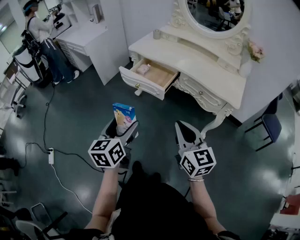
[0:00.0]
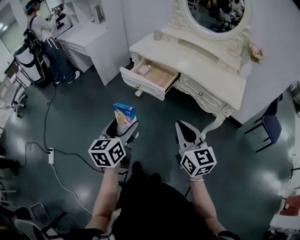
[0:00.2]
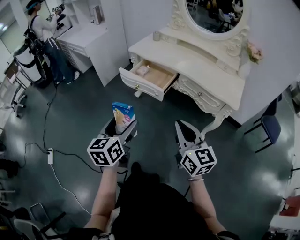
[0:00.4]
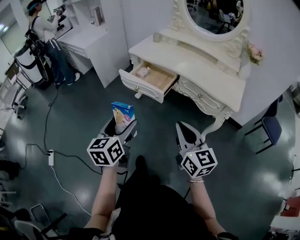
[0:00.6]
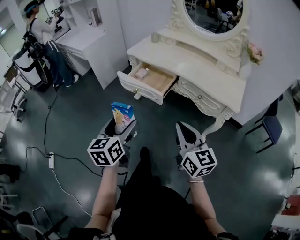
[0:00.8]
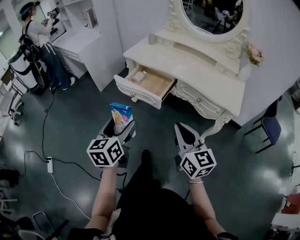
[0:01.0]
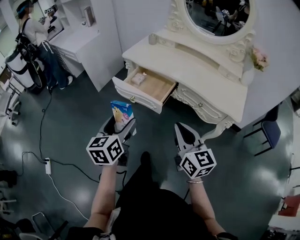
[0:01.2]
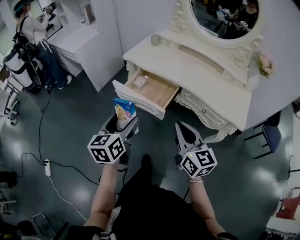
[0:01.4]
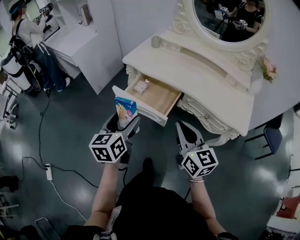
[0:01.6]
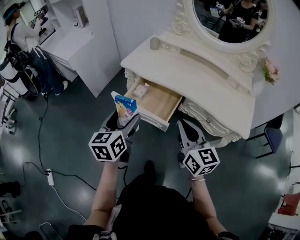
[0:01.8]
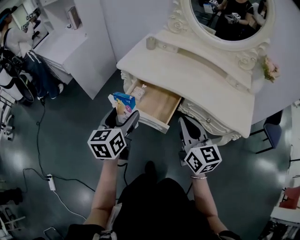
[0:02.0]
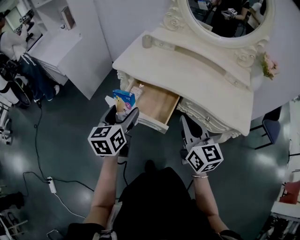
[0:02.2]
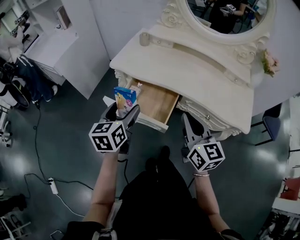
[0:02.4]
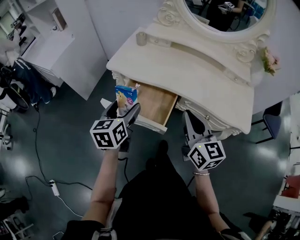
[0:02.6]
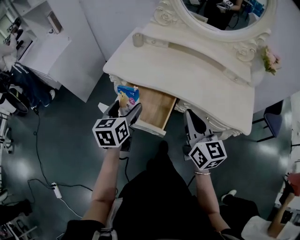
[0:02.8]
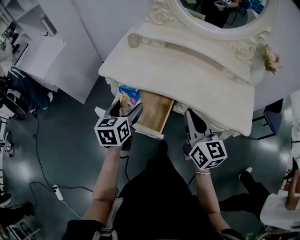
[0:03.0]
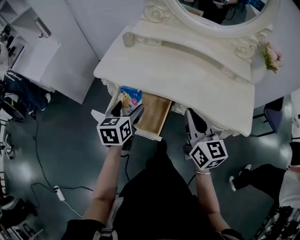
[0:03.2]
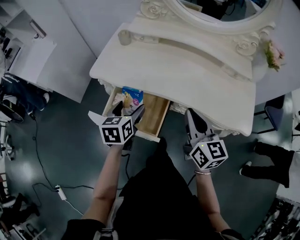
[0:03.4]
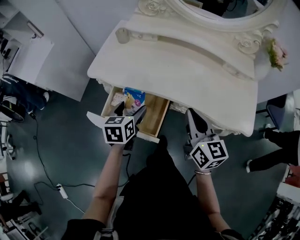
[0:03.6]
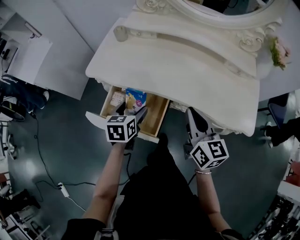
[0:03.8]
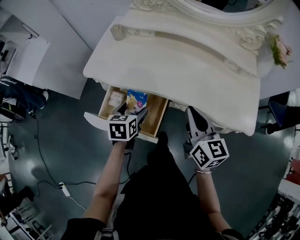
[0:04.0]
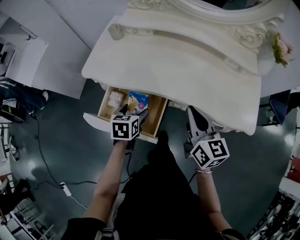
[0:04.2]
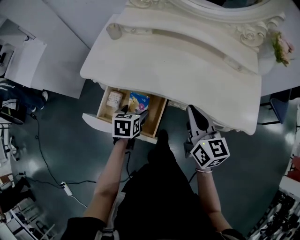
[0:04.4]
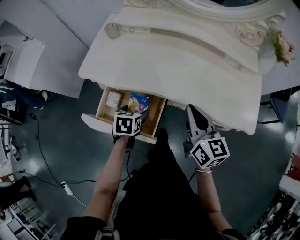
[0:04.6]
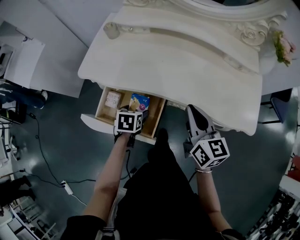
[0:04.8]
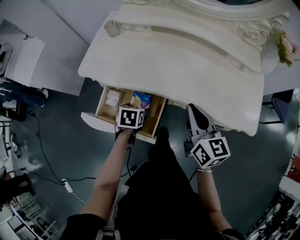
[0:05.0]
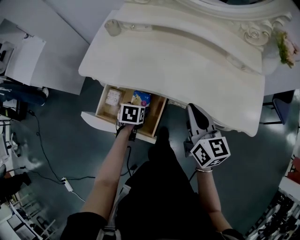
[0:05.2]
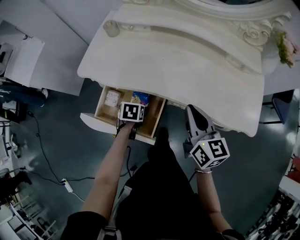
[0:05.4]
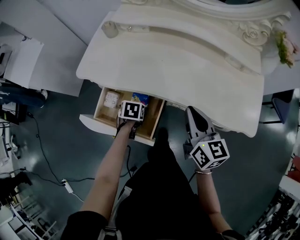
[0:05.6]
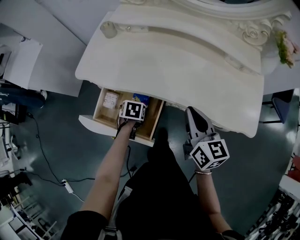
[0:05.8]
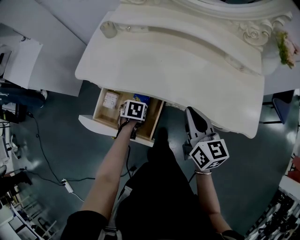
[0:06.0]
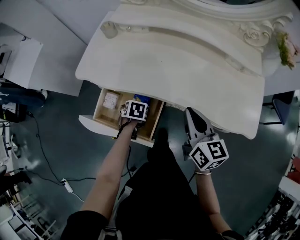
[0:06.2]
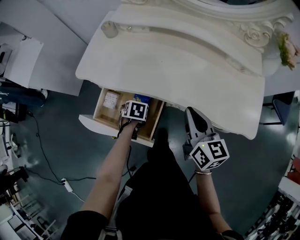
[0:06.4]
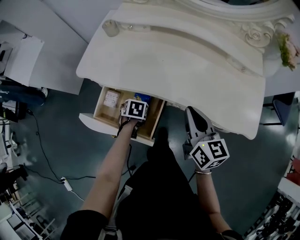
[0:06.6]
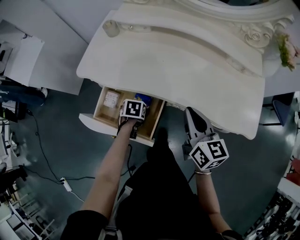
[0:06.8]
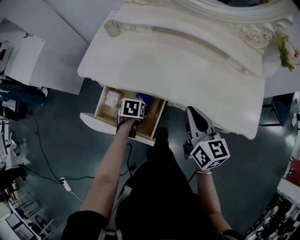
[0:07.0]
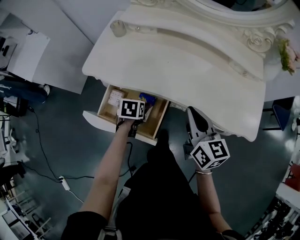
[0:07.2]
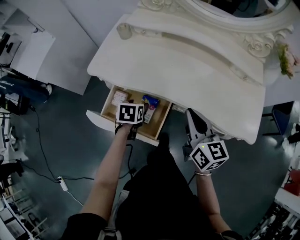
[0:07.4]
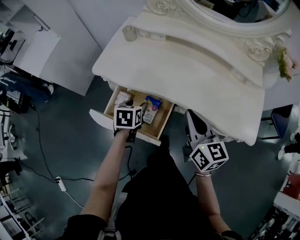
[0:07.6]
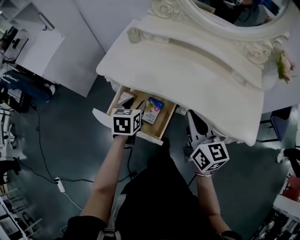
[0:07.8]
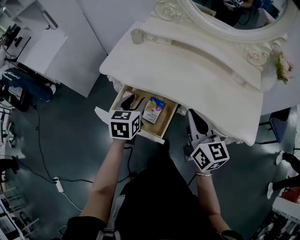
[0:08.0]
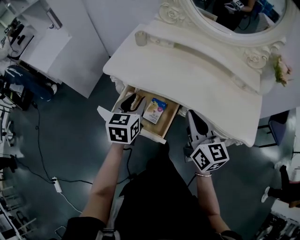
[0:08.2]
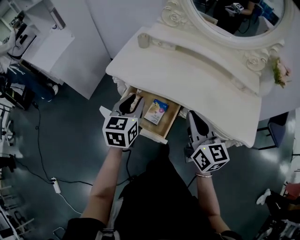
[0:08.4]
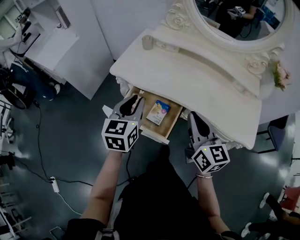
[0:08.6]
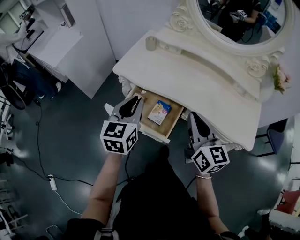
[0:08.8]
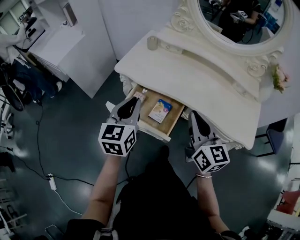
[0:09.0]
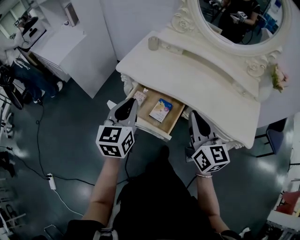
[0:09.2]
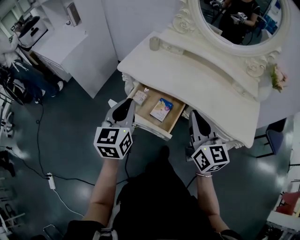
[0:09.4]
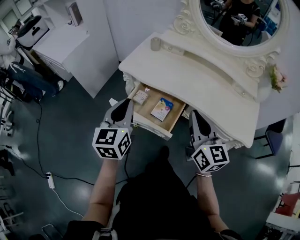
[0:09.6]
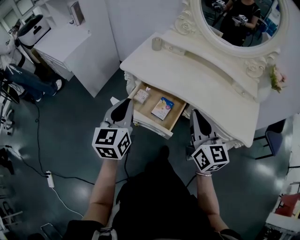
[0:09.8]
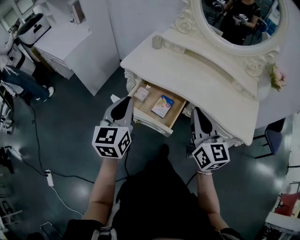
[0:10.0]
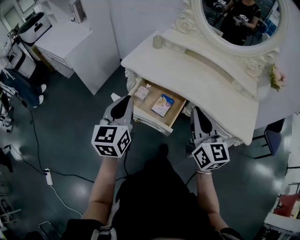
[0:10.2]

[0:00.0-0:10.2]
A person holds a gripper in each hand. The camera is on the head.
0:00.0 to 0:01.4: Both grippers travel together forward, approximately 15 cm.
0:01.4 to 0:03.0: The grippers both shift forward by approximately 25 cm.
0:03.0 to 0:04.4: The left gripper travels downward and to the right by roughly 15 cm, and changes its angle by approximately 30 degrees, while the right gripper is displaced forward and downward by roughly 10 cm.
0:04.4 to 0:05.8: The left gripper heads downward, covering about 10 cm, and swivels some 20 degrees.
0:05.8 to 0:07.2: The left gripper goes about 5 cm upward.
0:07.2 to 0:08.8: The left gripper goes roughly 25 cm upward, tilts its fingers approximately 50 degrees upward, and closes its fingers. Meanwhile the right gripper heads upward, to the left and backward, covering roughly 15 cm.
0:08.8 to 0:10.2: The left gripper moves backward and to the left, approximately 10 cm; the right gripper travels backward by some 5 cm.

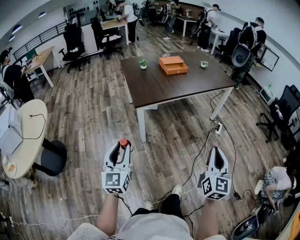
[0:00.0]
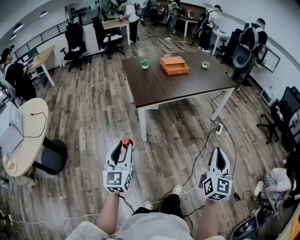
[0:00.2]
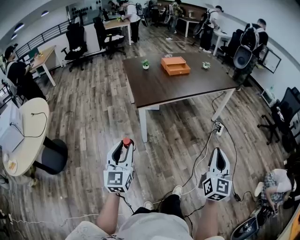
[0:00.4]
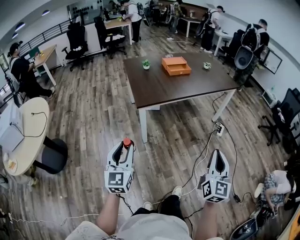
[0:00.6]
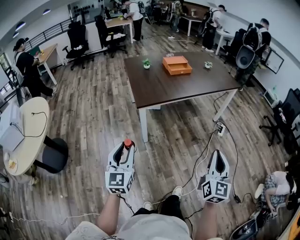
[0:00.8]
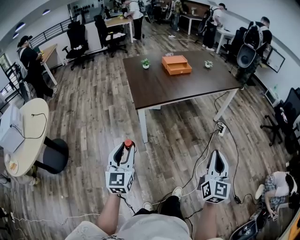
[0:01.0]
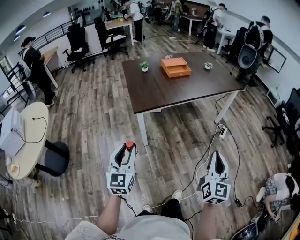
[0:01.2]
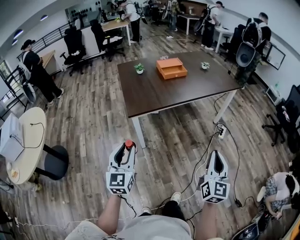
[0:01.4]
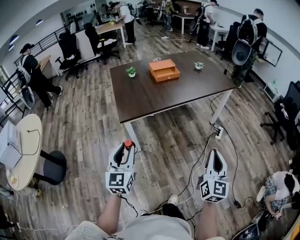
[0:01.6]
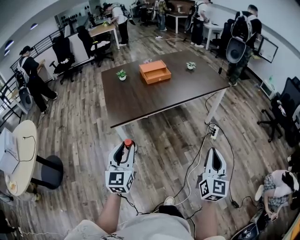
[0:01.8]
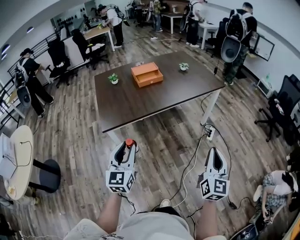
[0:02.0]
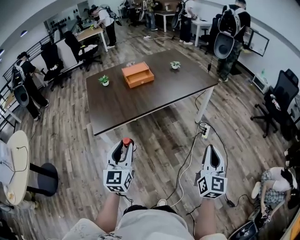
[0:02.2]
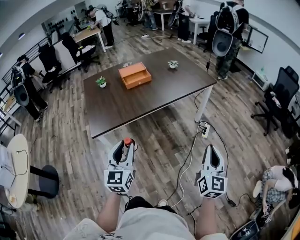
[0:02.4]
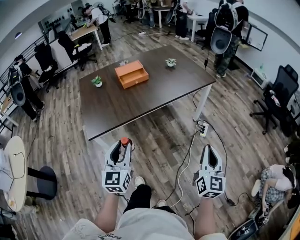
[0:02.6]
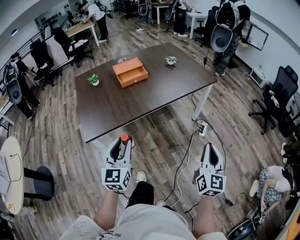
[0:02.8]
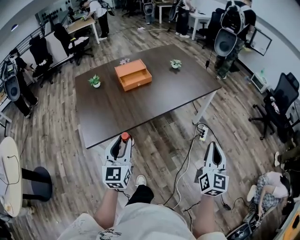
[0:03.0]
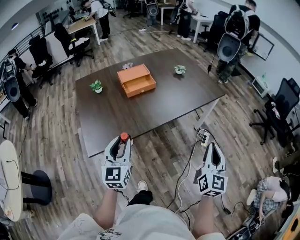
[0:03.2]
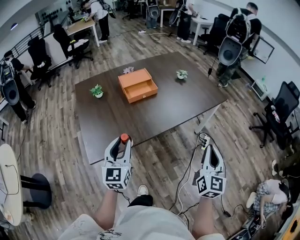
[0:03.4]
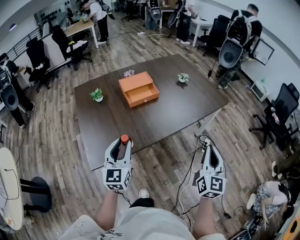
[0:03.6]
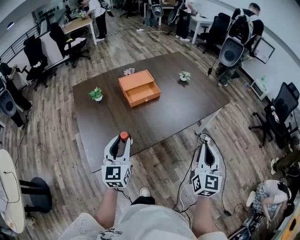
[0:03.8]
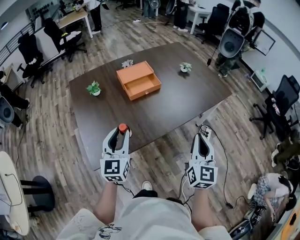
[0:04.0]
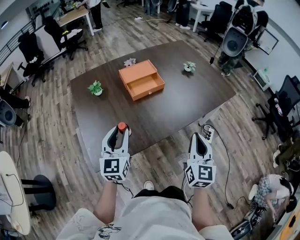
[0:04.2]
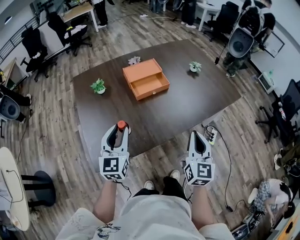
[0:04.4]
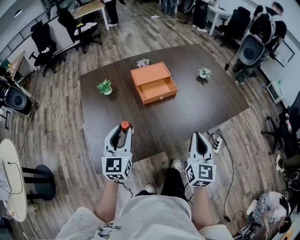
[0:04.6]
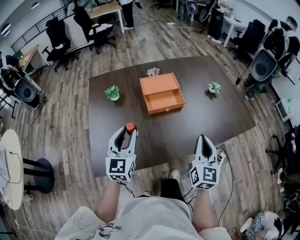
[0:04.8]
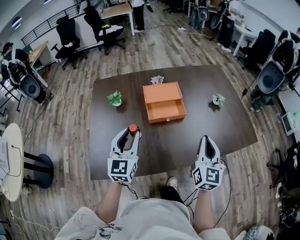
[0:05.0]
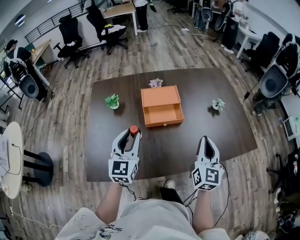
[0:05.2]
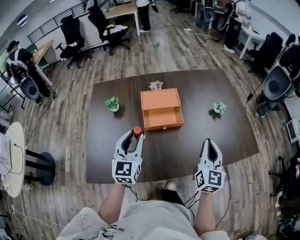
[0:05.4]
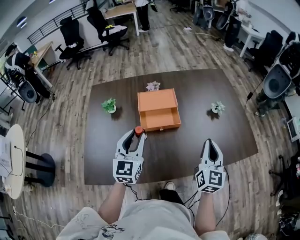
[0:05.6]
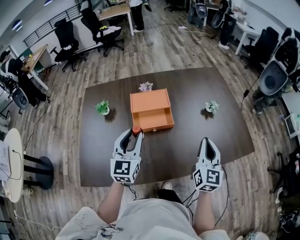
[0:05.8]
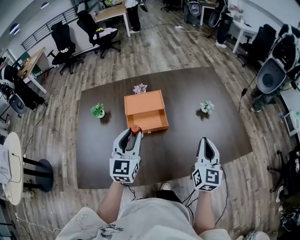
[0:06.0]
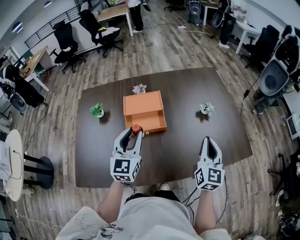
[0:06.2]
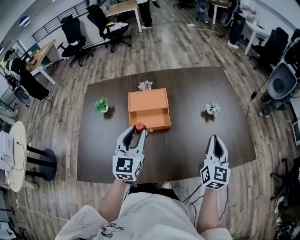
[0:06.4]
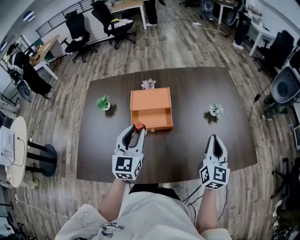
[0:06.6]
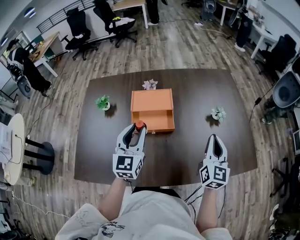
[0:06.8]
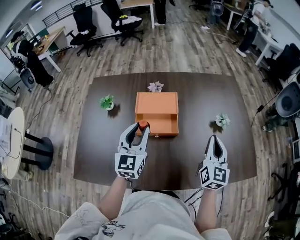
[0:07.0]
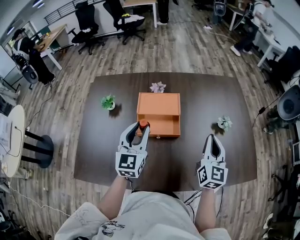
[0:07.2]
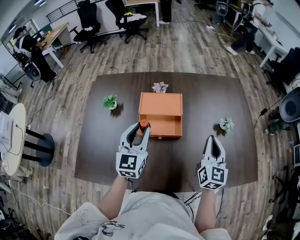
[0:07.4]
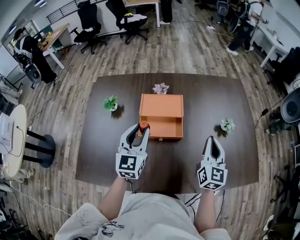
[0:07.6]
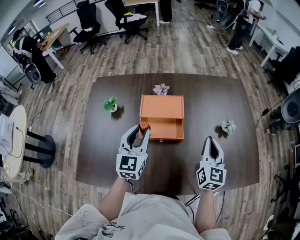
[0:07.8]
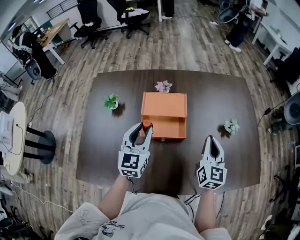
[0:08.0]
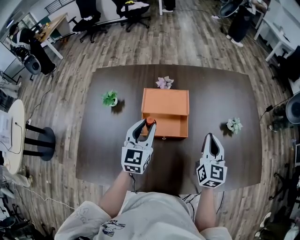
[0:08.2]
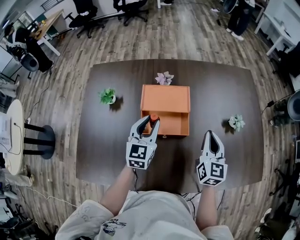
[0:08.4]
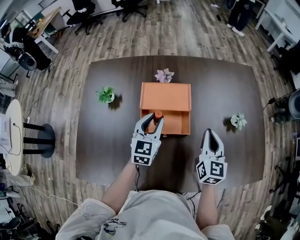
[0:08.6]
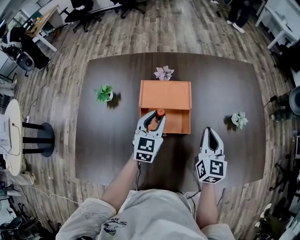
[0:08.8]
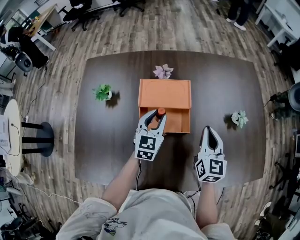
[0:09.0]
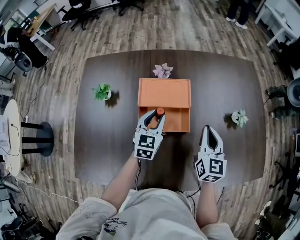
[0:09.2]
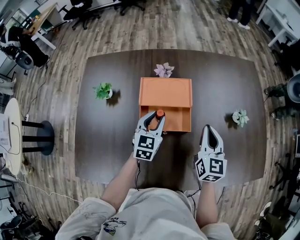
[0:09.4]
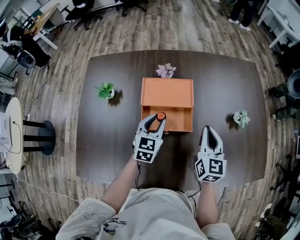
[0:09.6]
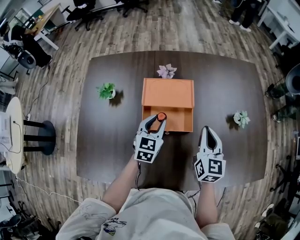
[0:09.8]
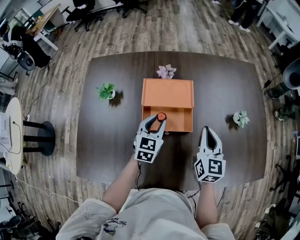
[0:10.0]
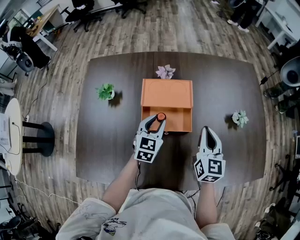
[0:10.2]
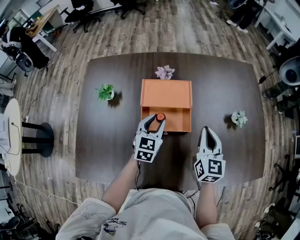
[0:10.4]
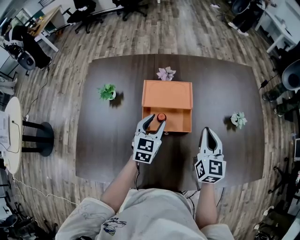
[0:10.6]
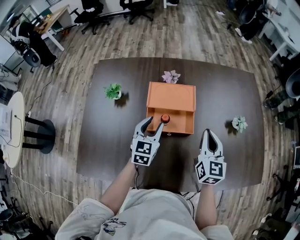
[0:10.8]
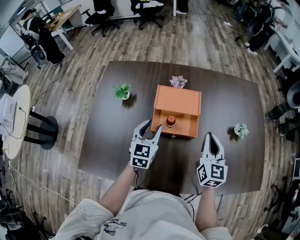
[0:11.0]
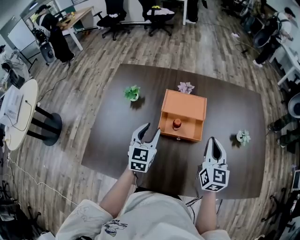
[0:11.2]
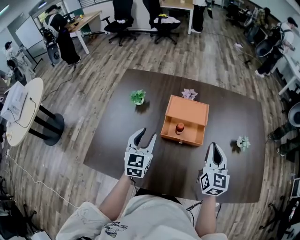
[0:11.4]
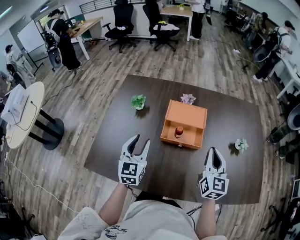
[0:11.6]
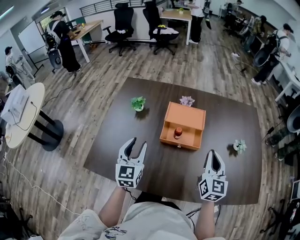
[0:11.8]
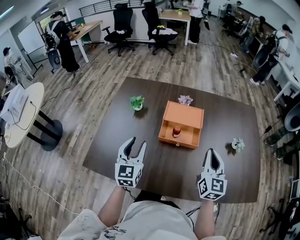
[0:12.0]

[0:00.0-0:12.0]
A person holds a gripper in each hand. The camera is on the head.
0:00.0 to 0:01.6: Both grippers travel together forward and to the right, some 20 cm.
0:01.6 to 0:03.0: The right gripper shifts about 25 cm forward and to the right. The left gripper is displaced forward by about 30 cm.
0:03.0 to 0:04.4: The right gripper is displaced to the left and forward by roughly 30 cm, while the left gripper moves forward and to the left, about 25 cm.
0:04.4 to 0:06.0: Both grippers move forward and to the right, about 30 cm.
0:06.0 to 0:07.6: The left gripper goes roughly 5 cm forward. Meanwhile the right gripper shifts about 10 cm forward.
0:07.6 to 0:09.0: The left gripper moves downward and forward, about 15 cm; the right gripper is displaced downward, forward and to the left by approximately 10 cm.
0:09.0 to 0:10.4: The grippers move only a little.
0:10.4 to 0:12.0: The right gripper shifts approximately 10 cm backward and upward, while the left gripper heads backward, to the left and upward, covering some 25 cm, and turns by roughly 30 degrees.

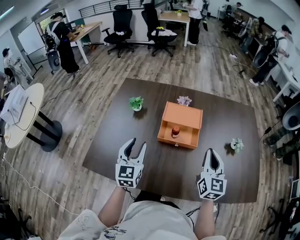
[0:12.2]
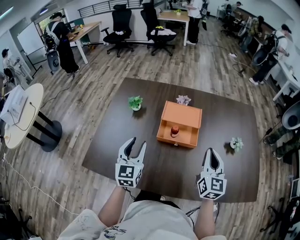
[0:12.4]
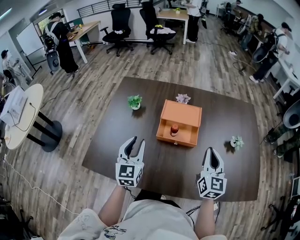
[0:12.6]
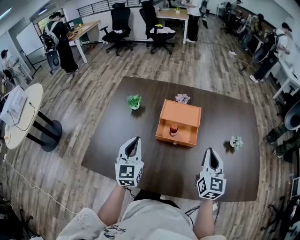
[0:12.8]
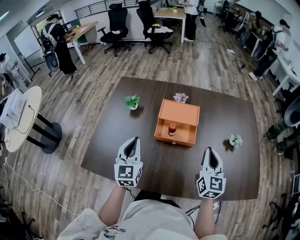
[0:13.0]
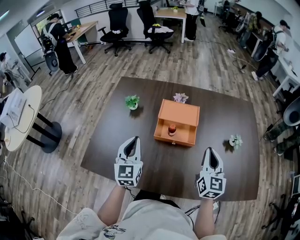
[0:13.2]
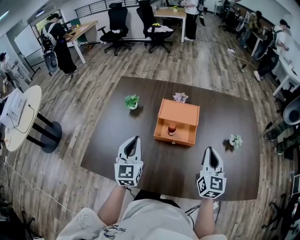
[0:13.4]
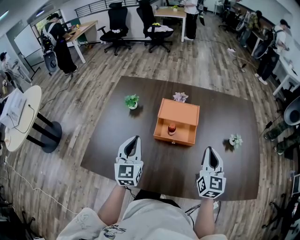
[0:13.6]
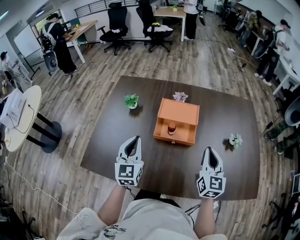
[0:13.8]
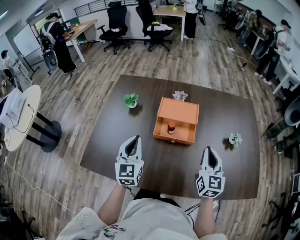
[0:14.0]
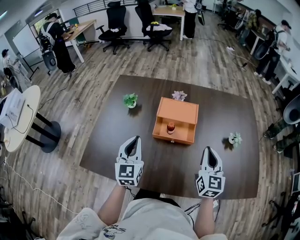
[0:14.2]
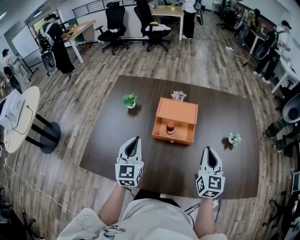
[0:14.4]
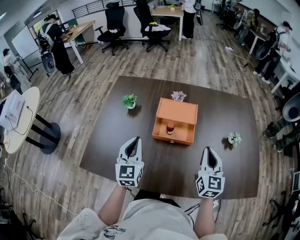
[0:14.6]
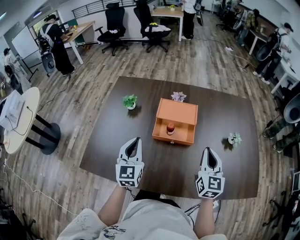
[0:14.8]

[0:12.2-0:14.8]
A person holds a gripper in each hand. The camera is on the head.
0:12.2 to 0:13.4: The left gripper closes its fingers.
0:13.4 to 0:14.8: The two grippers keep their place.
